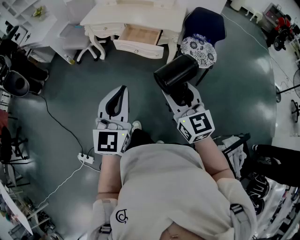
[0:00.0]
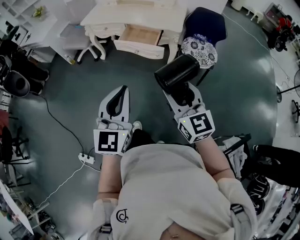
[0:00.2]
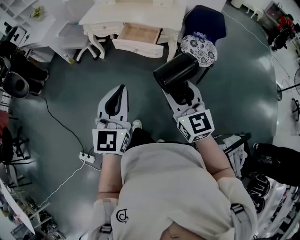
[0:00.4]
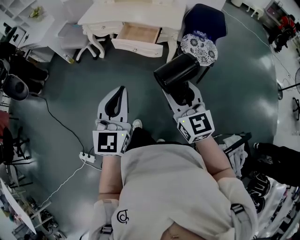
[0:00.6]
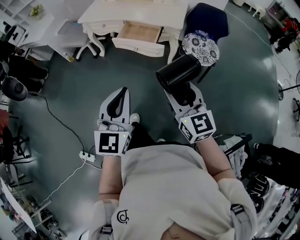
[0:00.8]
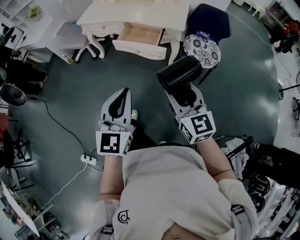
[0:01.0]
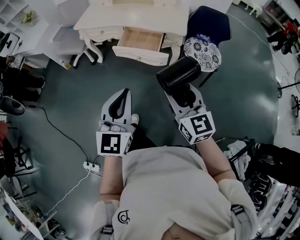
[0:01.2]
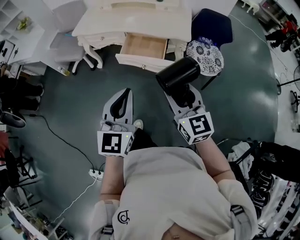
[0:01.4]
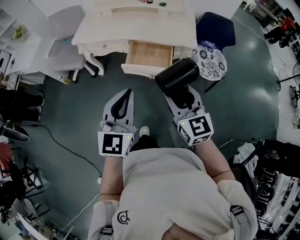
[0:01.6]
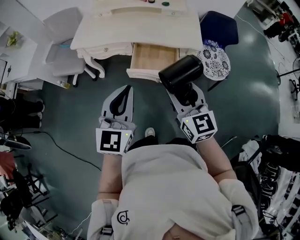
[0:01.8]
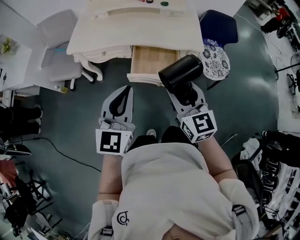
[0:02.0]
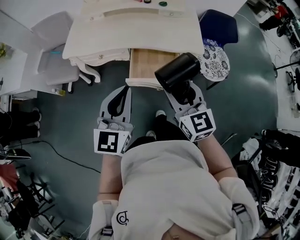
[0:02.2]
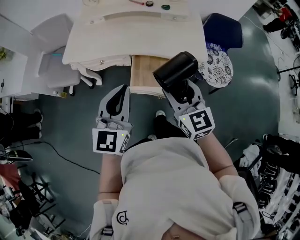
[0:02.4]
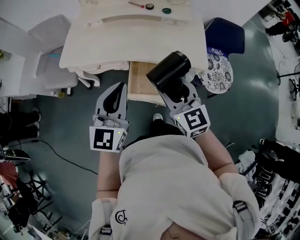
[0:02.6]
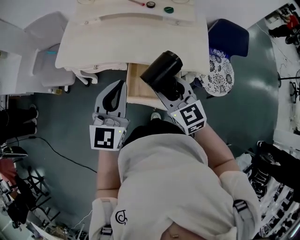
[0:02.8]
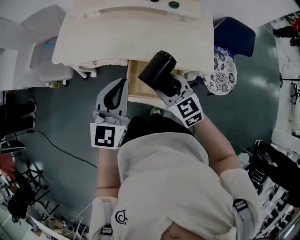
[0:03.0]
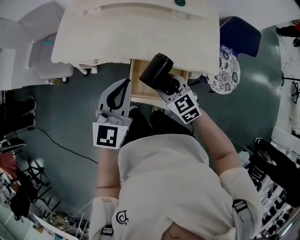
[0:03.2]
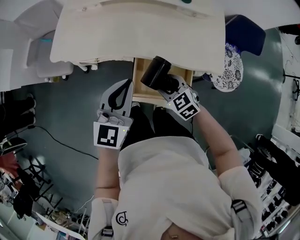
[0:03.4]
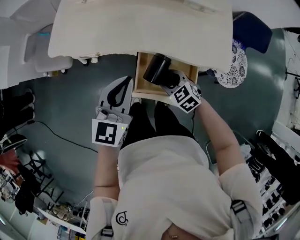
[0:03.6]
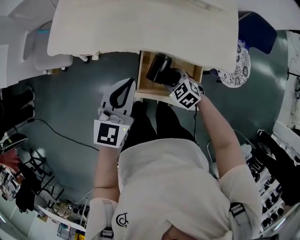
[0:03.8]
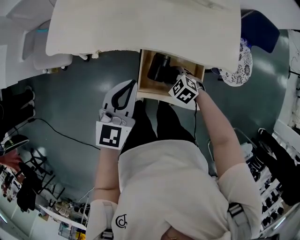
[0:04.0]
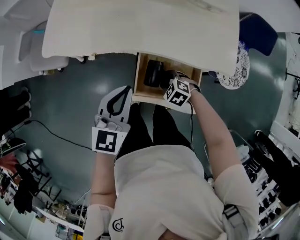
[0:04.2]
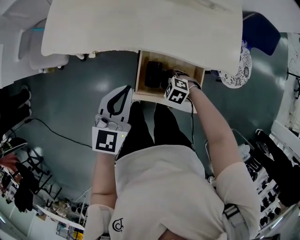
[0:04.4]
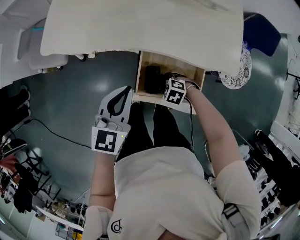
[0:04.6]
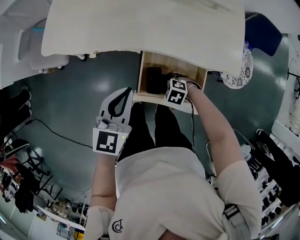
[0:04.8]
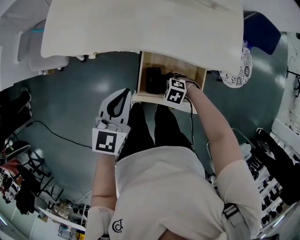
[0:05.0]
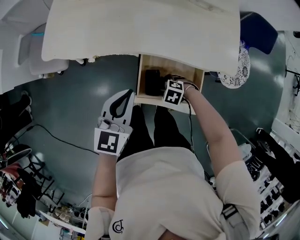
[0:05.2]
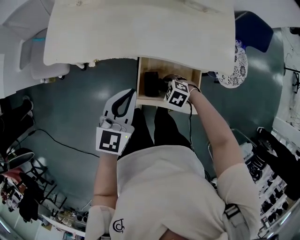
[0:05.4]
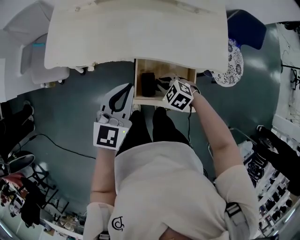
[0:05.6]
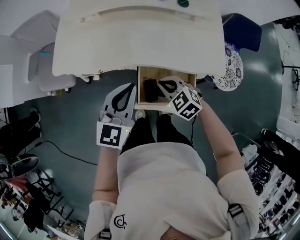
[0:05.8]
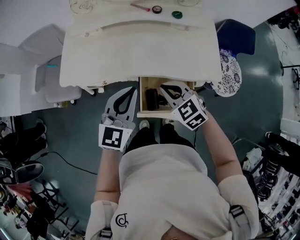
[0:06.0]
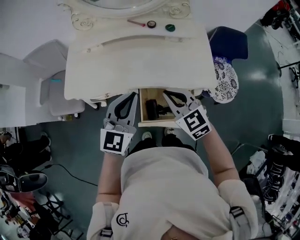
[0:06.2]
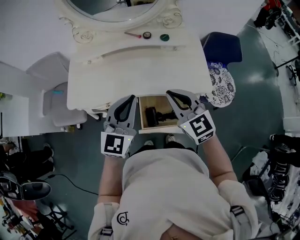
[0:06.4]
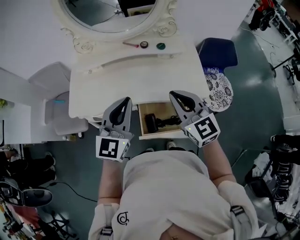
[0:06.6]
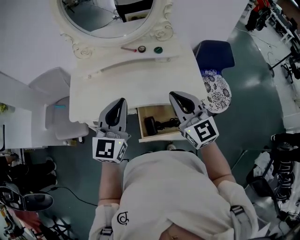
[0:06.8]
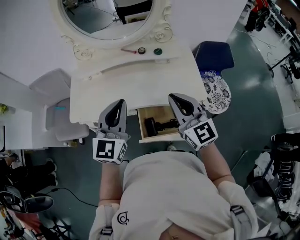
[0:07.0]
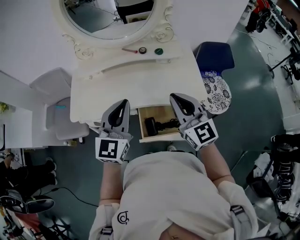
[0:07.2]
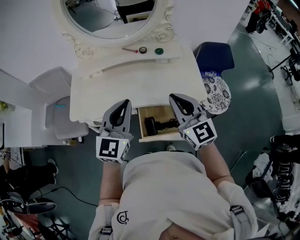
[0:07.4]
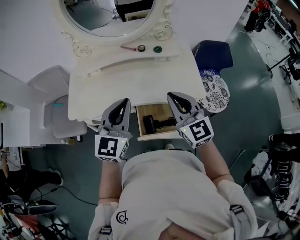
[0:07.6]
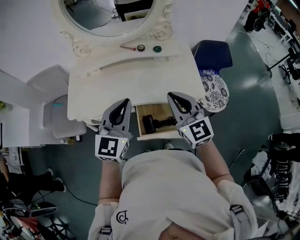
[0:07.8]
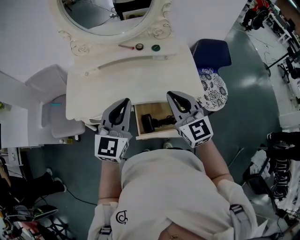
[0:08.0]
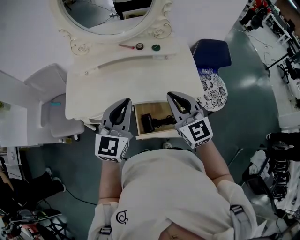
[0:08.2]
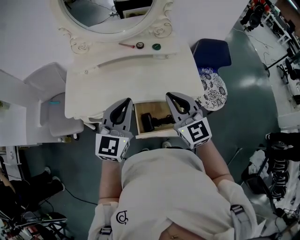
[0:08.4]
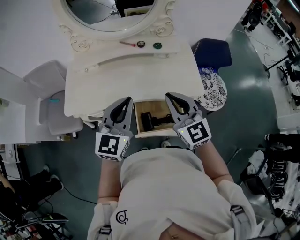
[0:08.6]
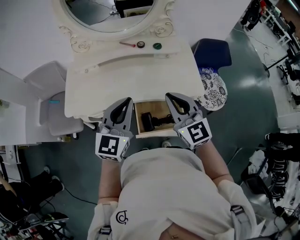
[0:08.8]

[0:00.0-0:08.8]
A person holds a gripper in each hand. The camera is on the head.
0:00.0 to 0:01.4: The grippers both shift forward by roughly 20 cm.
0:01.4 to 0:03.0: Both grippers move forward, approximately 40 cm. The right gripper changes its angle by some 20 degrees.
0:03.0 to 0:04.4: The right gripper heads downward, covering roughly 30 cm, and angles its fingers downward, by approximately 50 degrees. The left gripper moves downward, approximately 15 cm.
0:04.4 to 0:05.8: The right gripper moves upward, roughly 20 cm, swivels about 30 degrees, and closes up; the left gripper heads upward, covering approximately 5 cm.
0:05.8 to 0:07.4: The left gripper goes approximately 15 cm upward; the right gripper travels upward by approximately 30 cm, and tilts its fingers some 50 degrees upward.
0:07.4 to 0:08.8: There are only small adjustments of the grippers.

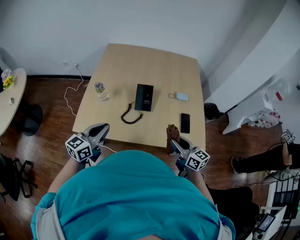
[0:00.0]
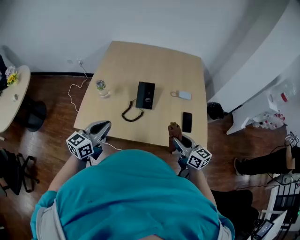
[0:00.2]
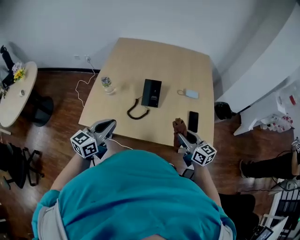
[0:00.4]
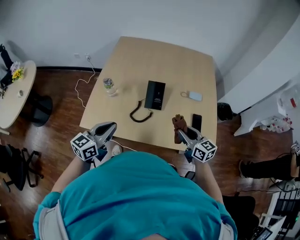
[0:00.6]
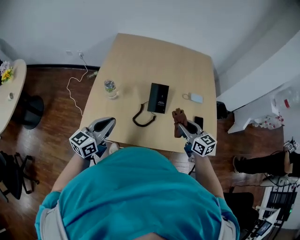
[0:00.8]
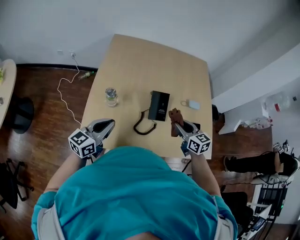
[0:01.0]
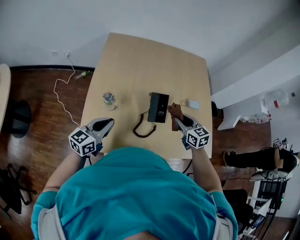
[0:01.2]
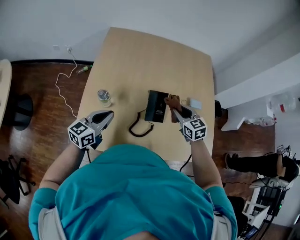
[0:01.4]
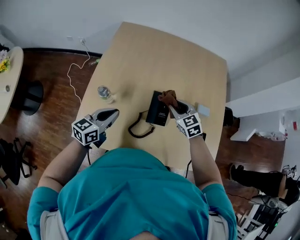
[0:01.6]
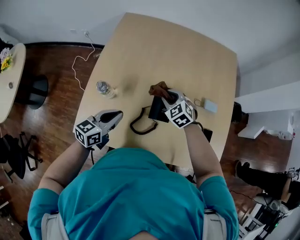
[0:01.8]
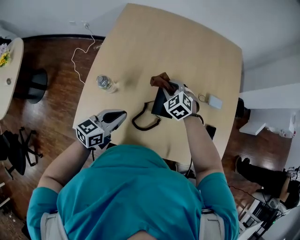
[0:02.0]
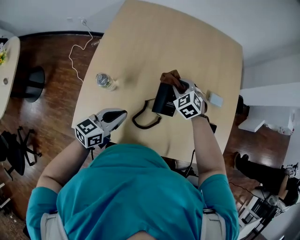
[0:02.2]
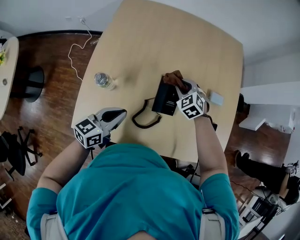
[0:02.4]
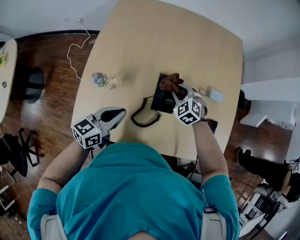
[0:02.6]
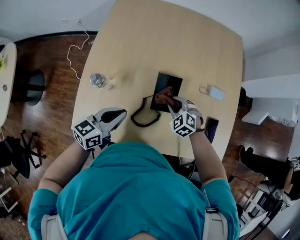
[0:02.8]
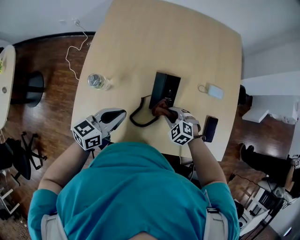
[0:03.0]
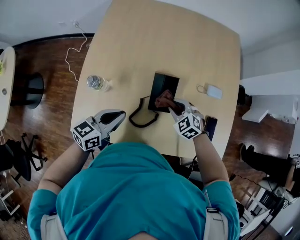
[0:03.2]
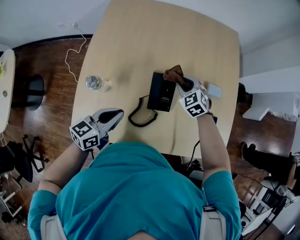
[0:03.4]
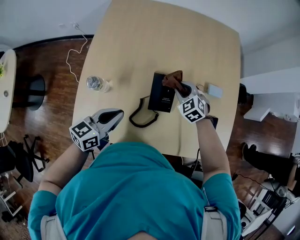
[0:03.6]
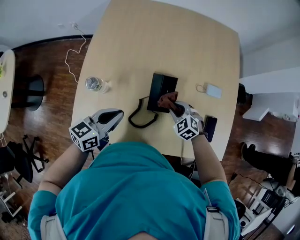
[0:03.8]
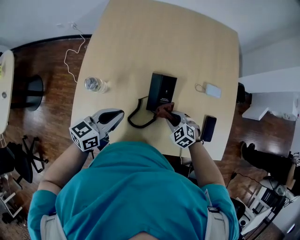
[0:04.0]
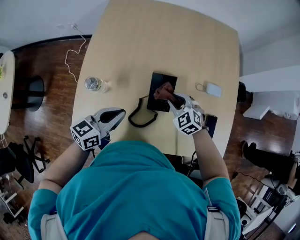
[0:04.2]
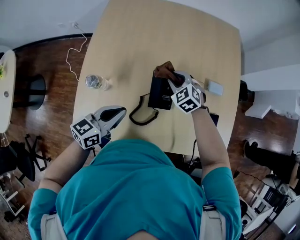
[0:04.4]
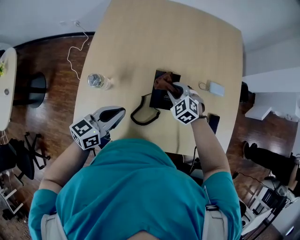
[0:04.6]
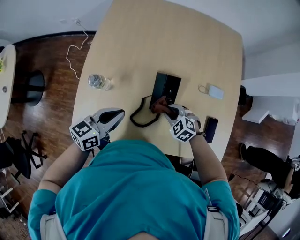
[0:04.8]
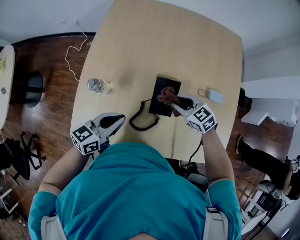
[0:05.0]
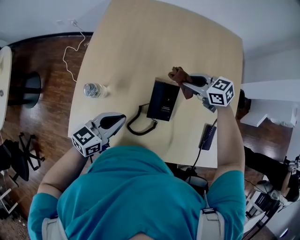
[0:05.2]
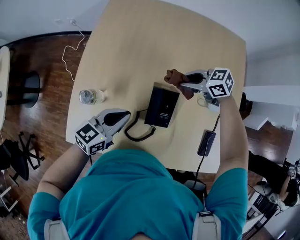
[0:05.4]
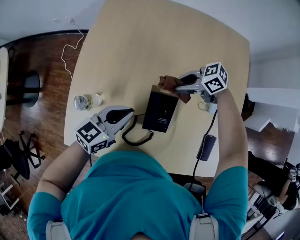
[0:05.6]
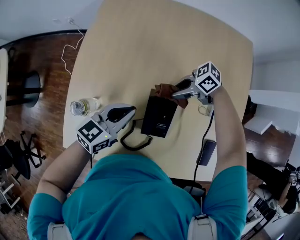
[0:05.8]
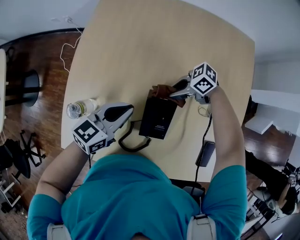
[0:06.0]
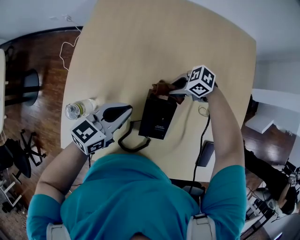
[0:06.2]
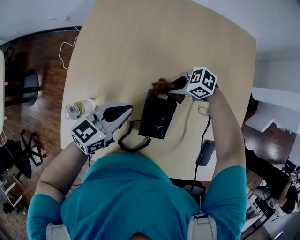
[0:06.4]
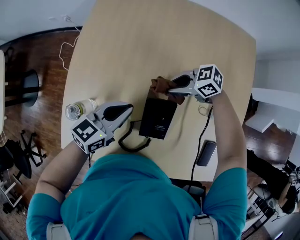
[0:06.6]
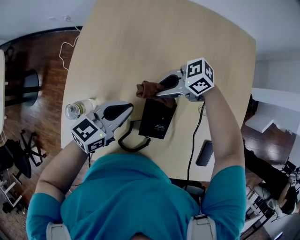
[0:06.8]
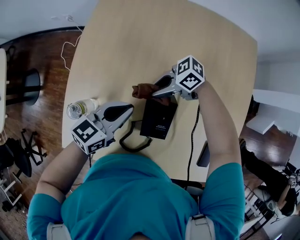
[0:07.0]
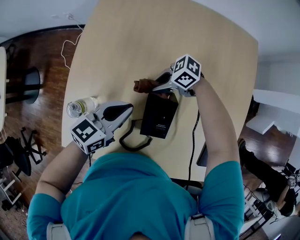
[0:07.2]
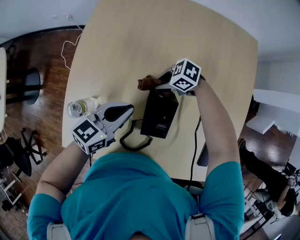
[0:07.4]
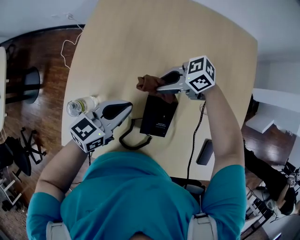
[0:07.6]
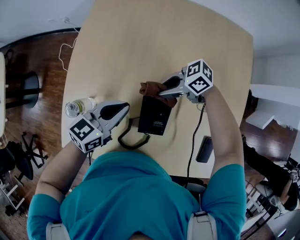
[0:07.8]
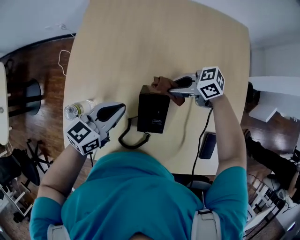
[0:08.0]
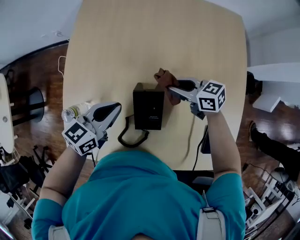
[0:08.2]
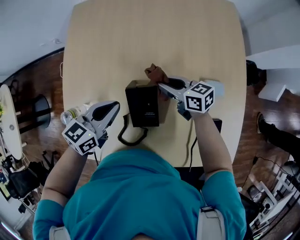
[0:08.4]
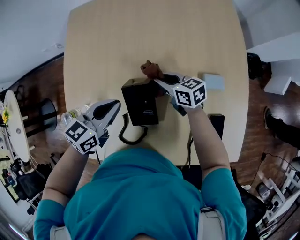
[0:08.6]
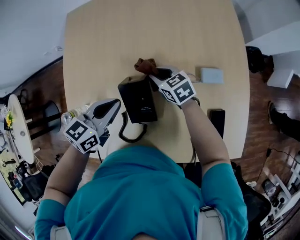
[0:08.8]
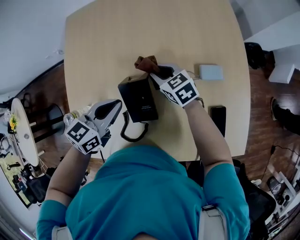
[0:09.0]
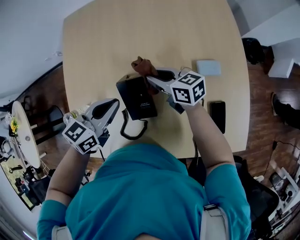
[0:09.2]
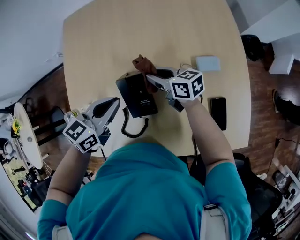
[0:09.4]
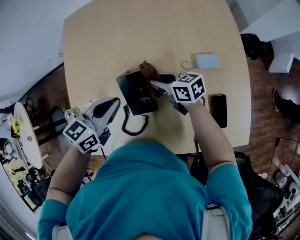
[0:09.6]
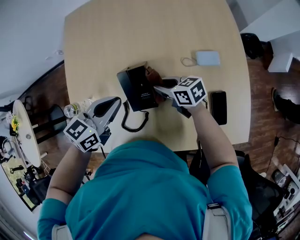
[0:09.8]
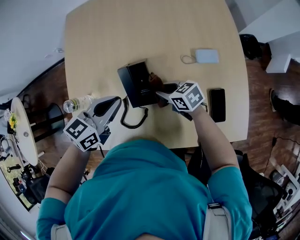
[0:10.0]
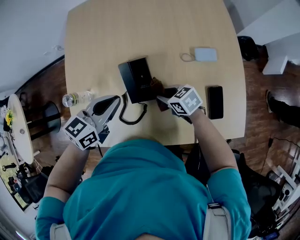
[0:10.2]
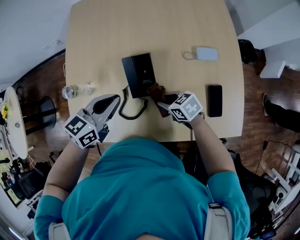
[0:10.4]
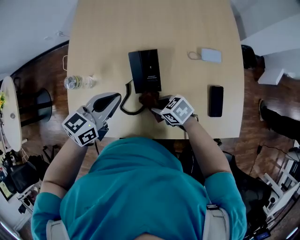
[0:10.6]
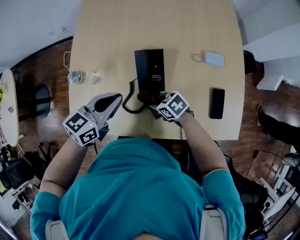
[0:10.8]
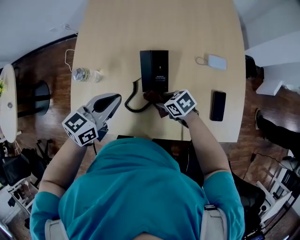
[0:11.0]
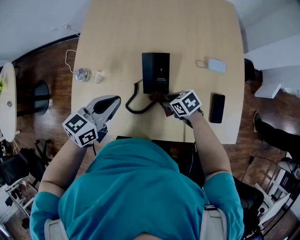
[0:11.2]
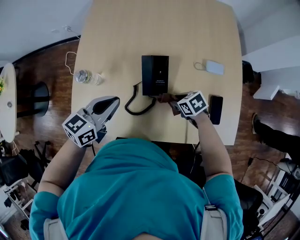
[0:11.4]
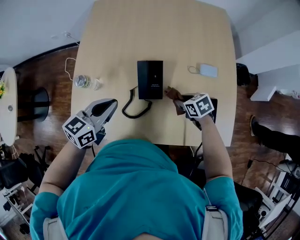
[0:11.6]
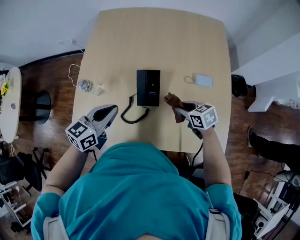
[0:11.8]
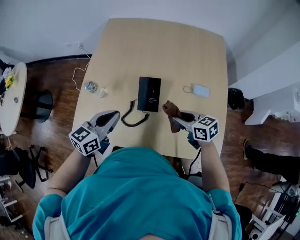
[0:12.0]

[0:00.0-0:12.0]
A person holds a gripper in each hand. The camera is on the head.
0:00.0 to 0:01.6: The left gripper goes some 20 cm forward, while the right gripper heads forward, covering roughly 30 cm, and rotates roughly 40 degrees.
0:01.6 to 0:03.0: The left gripper moves roughly 5 cm; the right gripper travels downward and backward by about 20 cm, and rotates roughly 30 degrees.
0:03.0 to 0:04.4: The right gripper goes forward and backward, roughly 15 cm each way, reversing 2 times.
0:04.4 to 0:06.0: The left gripper changes place by some 15 cm; the right gripper moves up and down over roughly 10 cm, changing direction 2 times, and swivels some 70 degrees.
0:06.0 to 0:07.6: The right gripper swings up and down, approximately 10 cm each way, with 2 reversals.
0:07.6 to 0:09.0: The right gripper moves approximately 10 cm, and changes its angle by roughly 60 degrees. The left gripper changes place by roughly 5 cm.
0:09.0 to 0:10.4: The left gripper shifts roughly 10 cm backward. The right gripper travels backward by some 20 cm, and turns by roughly 20 degrees.
0:10.4 to 0:12.0: The right gripper travels upward by some 15 cm. The left gripper shifts by approximately 10 cm.

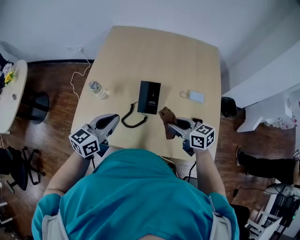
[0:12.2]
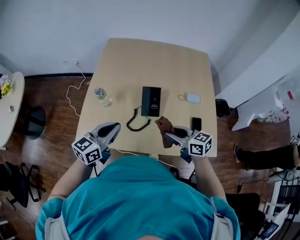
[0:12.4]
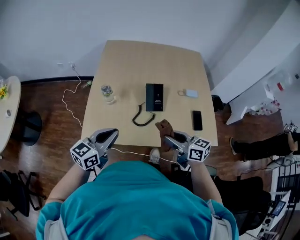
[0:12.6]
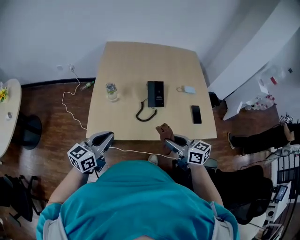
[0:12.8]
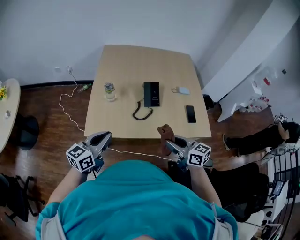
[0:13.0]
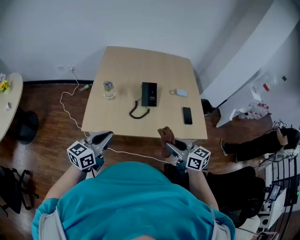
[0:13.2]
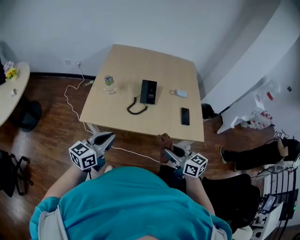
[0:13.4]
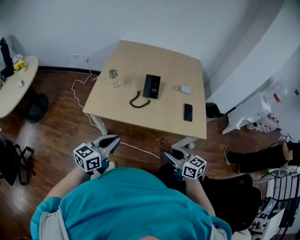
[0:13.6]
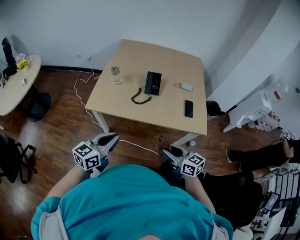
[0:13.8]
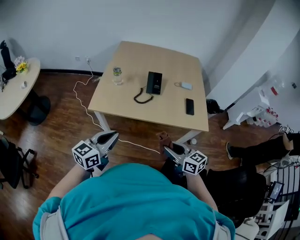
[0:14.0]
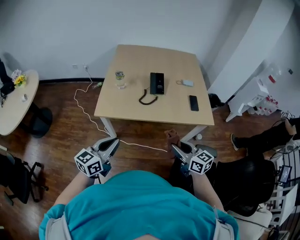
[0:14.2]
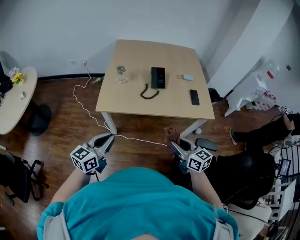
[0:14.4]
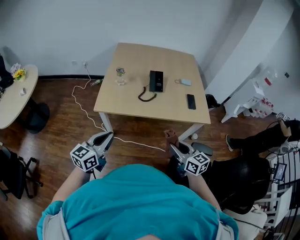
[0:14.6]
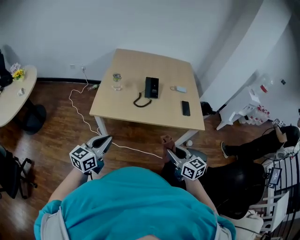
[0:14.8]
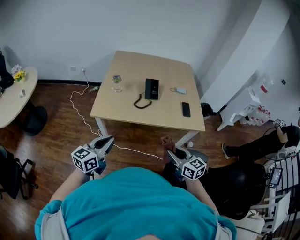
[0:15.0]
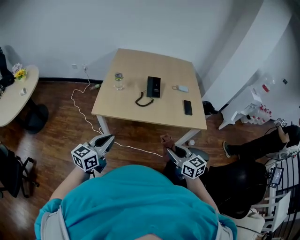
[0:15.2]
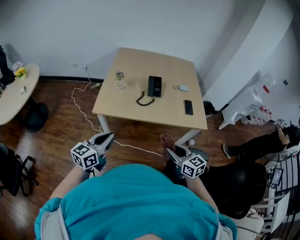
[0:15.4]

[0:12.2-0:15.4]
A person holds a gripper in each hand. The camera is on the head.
0:12.2 to 0:13.8: Both grippers move backward, approximately 35 cm.
0:13.8 to 0:15.4: The right gripper is displaced to the left and backward by approximately 10 cm. Meanwhile the left gripper is displaced to the left by about 10 cm.
